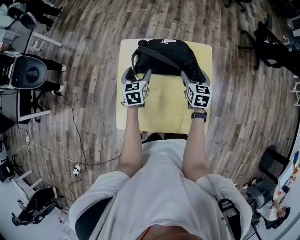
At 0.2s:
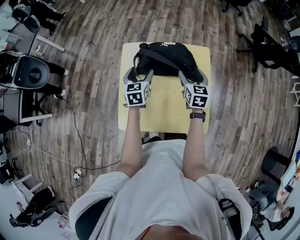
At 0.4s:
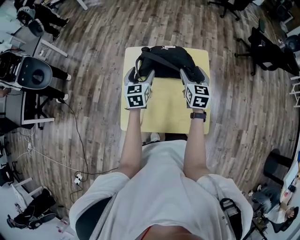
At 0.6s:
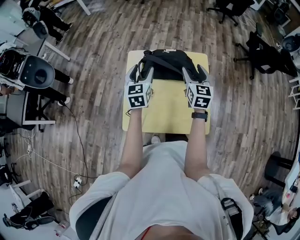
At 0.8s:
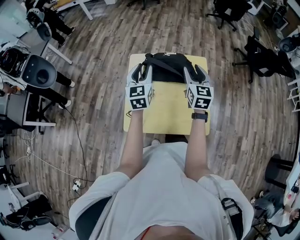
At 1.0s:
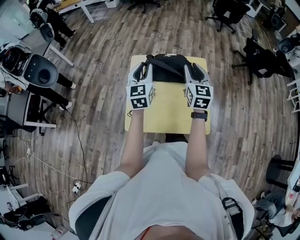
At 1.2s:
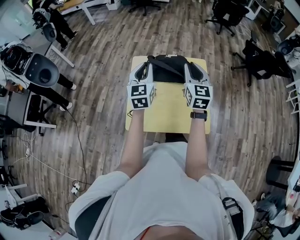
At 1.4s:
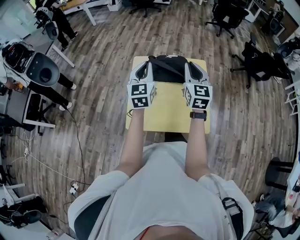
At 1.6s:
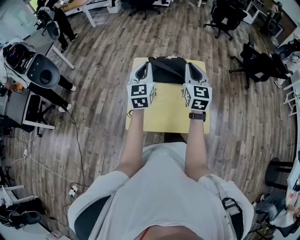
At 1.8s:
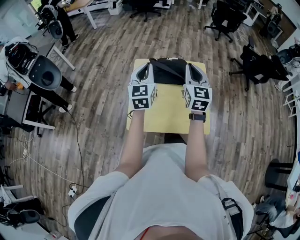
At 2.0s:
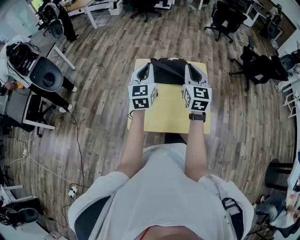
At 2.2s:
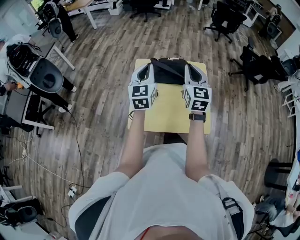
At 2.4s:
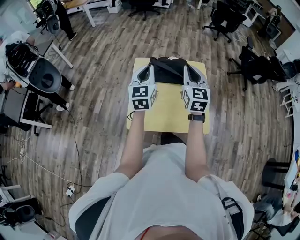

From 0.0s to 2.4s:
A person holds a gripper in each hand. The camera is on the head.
From 0.0s to 1.2s: The right gripper goes some 25 cm upward and backward, turns by about 30 degrees, and closes. The left gripper shifts some 20 cm upward, rotates approximately 30 degrees, and closes up.
From 1.2s to 2.4s: The right gripper shifts by roughly 5 cm.

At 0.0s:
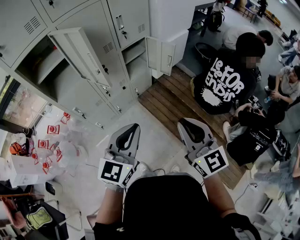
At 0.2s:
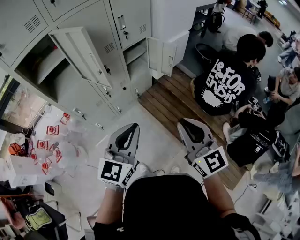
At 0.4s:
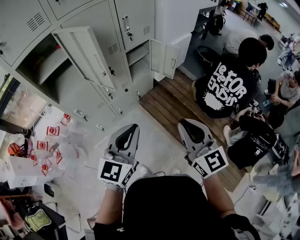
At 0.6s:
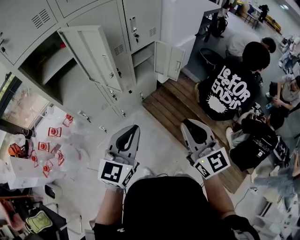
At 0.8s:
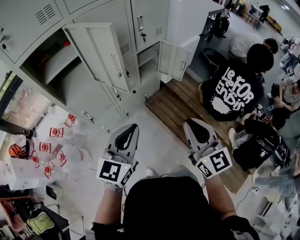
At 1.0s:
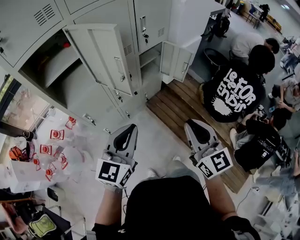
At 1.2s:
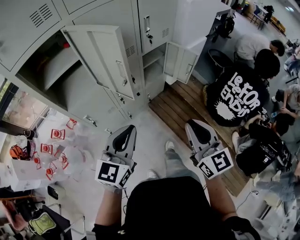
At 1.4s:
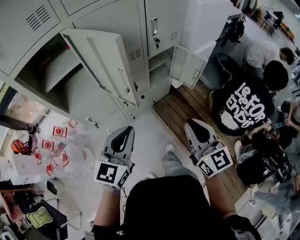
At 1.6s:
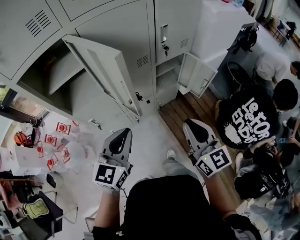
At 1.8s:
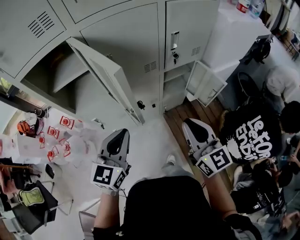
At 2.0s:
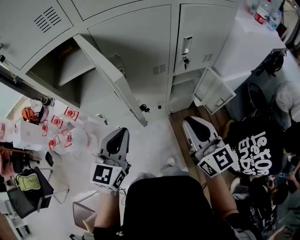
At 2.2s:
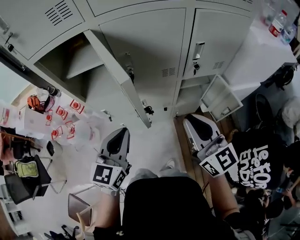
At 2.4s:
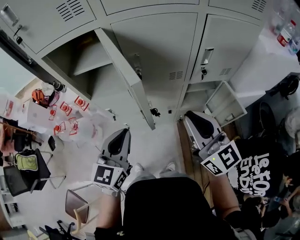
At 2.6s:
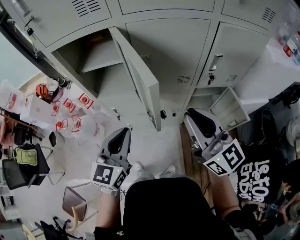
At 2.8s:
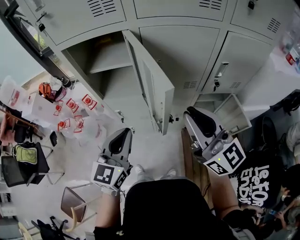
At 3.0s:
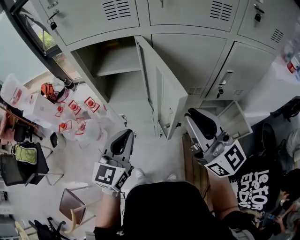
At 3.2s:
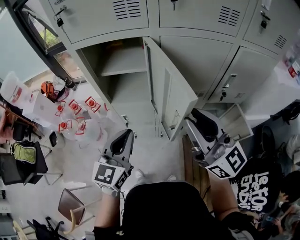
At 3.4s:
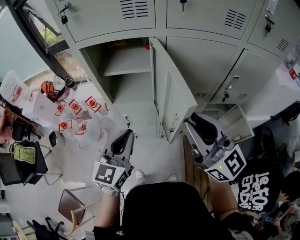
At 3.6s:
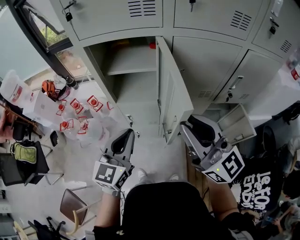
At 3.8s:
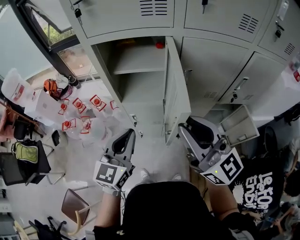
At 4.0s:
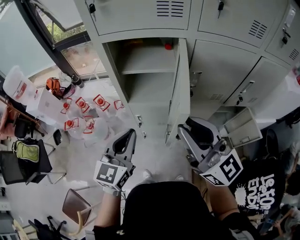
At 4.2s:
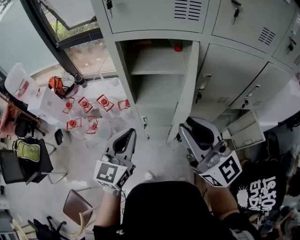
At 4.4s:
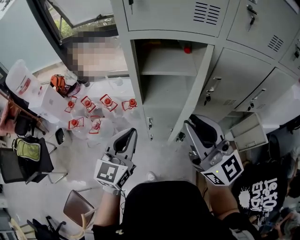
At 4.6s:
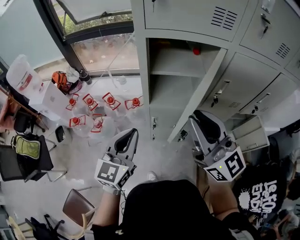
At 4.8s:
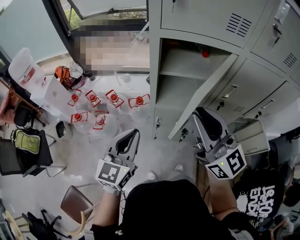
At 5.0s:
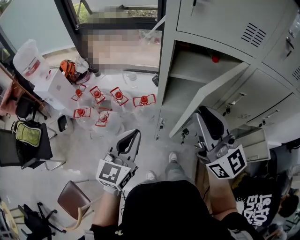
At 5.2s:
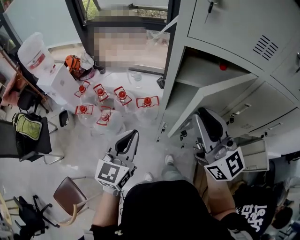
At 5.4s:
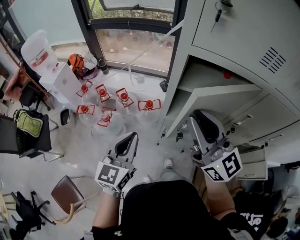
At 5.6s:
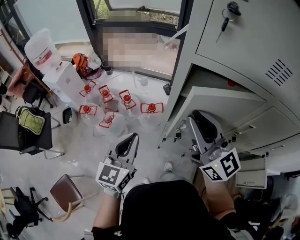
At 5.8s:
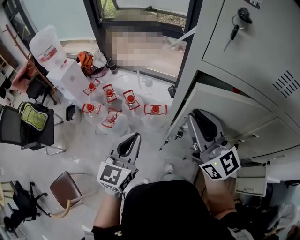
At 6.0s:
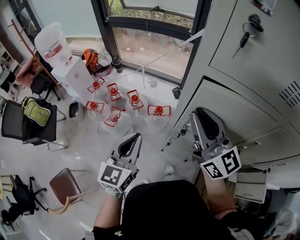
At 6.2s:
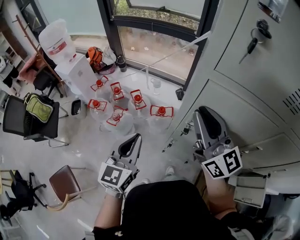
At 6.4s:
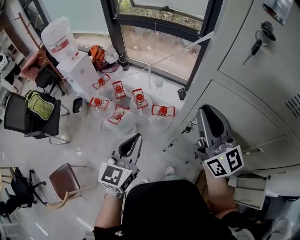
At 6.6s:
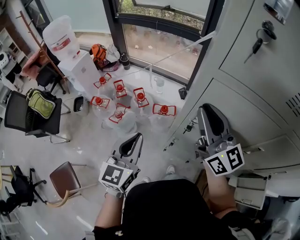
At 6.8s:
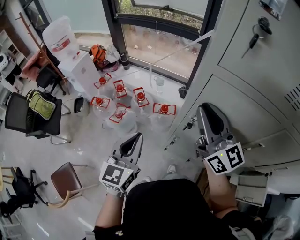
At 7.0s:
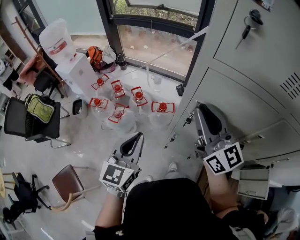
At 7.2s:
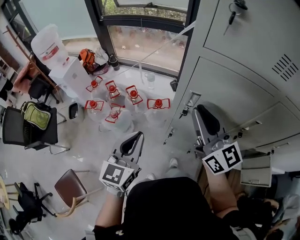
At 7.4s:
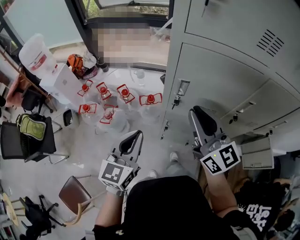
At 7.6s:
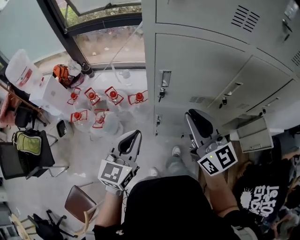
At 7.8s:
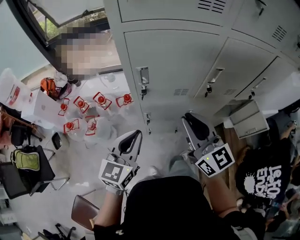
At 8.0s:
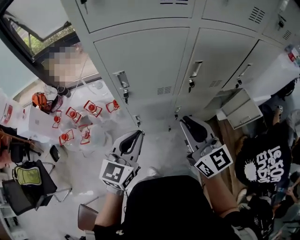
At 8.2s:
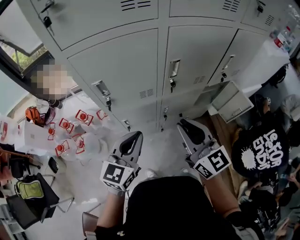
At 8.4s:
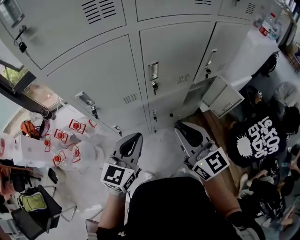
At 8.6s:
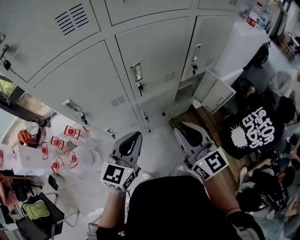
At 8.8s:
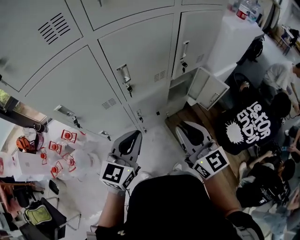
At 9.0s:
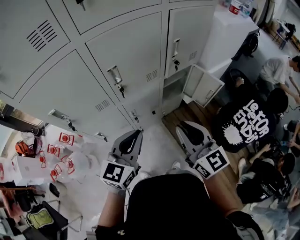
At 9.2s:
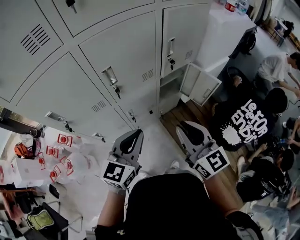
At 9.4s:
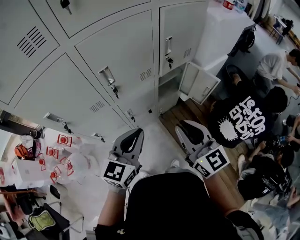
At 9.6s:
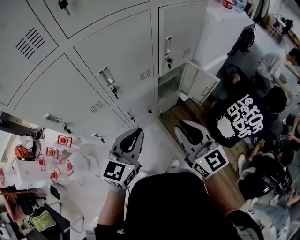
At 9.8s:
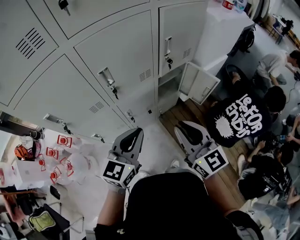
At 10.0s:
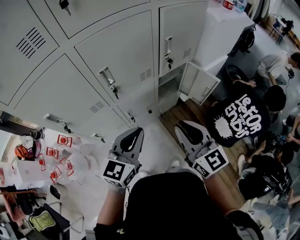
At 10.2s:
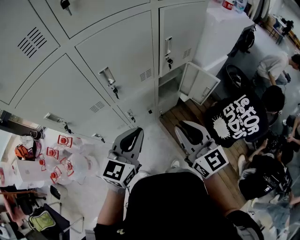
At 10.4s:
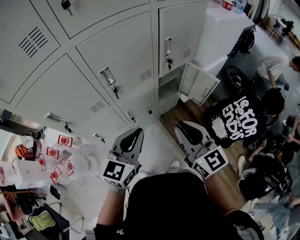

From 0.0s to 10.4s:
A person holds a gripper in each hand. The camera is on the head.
From 0.0s to 1.4s: The left gripper shifts roughly 20 cm to the left and forward, while the right gripper shifts about 20 cm forward and to the left.
From 1.4s to 3.0s: The left gripper shifts by some 15 cm, and changes its angle by roughly 40 degrees. The right gripper shifts by some 25 cm, and changes its angle by some 50 degrees.
From 3.0s to 4.4s: The grippers both shift to the left by some 20 cm.
From 4.4s to 6.0s: The right gripper goes roughly 20 cm forward; the left gripper heads forward and to the left, covering approximately 10 cm, and changes its angle by approximately 20 degrees.
From 6.0s to 7.4s: The right gripper heads backward, covering some 5 cm.
From 7.4s to 9.0s: The right gripper ends up approximately 40 cm from where it was, and swivels about 40 degrees. The left gripper shifts by some 40 cm, and changes its angle by about 50 degrees.
From 9.0s to 10.4s: There are only small adjustments of the grippers.

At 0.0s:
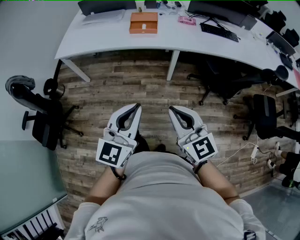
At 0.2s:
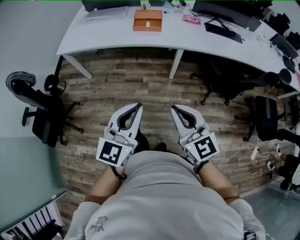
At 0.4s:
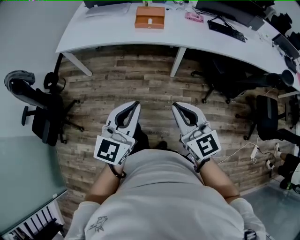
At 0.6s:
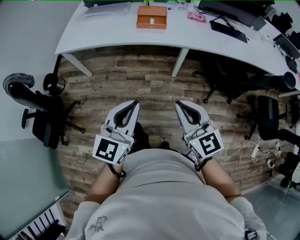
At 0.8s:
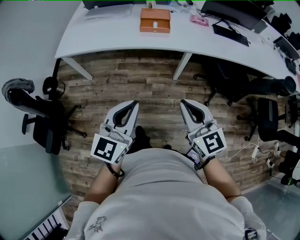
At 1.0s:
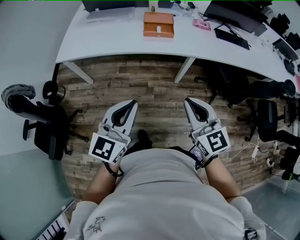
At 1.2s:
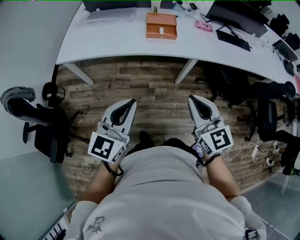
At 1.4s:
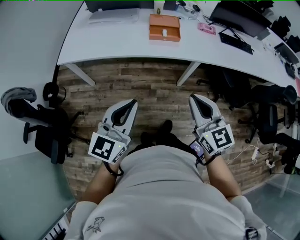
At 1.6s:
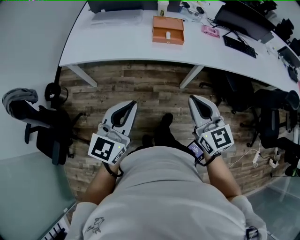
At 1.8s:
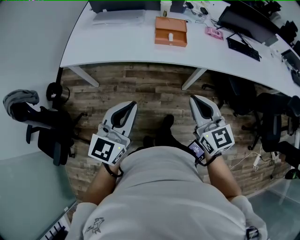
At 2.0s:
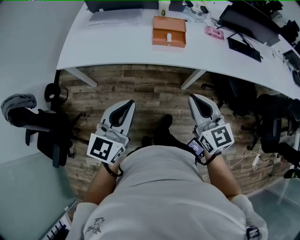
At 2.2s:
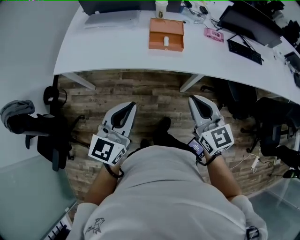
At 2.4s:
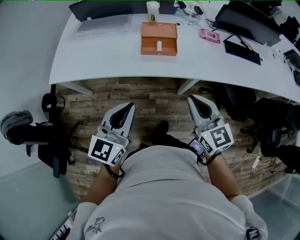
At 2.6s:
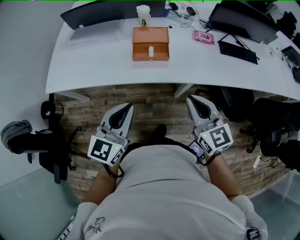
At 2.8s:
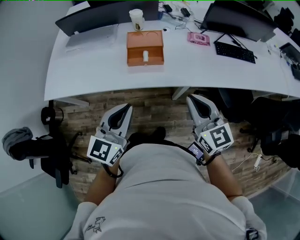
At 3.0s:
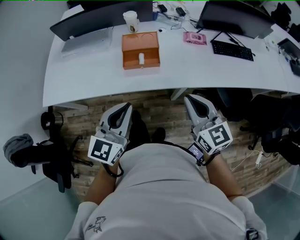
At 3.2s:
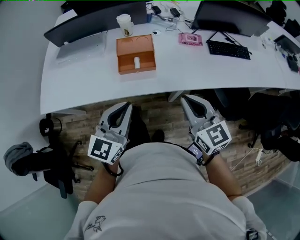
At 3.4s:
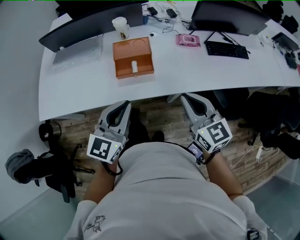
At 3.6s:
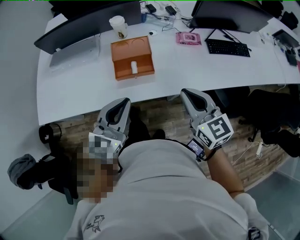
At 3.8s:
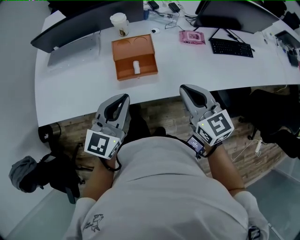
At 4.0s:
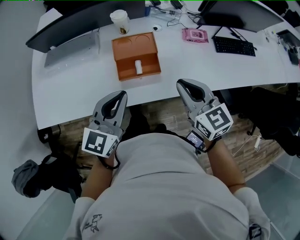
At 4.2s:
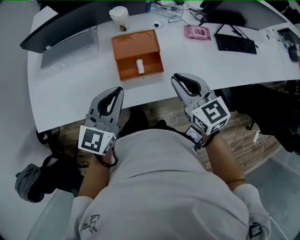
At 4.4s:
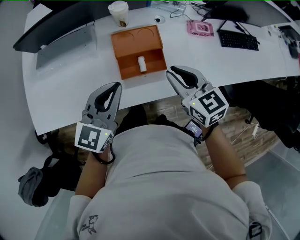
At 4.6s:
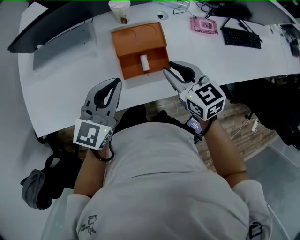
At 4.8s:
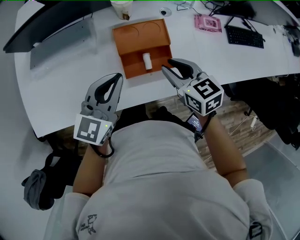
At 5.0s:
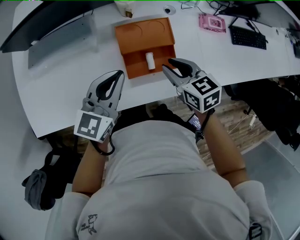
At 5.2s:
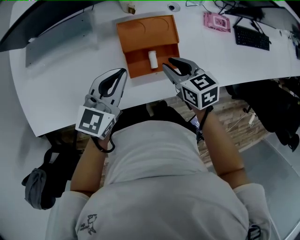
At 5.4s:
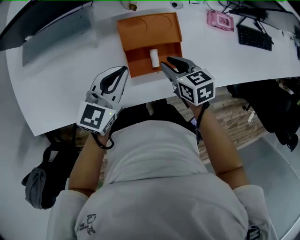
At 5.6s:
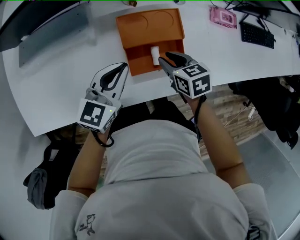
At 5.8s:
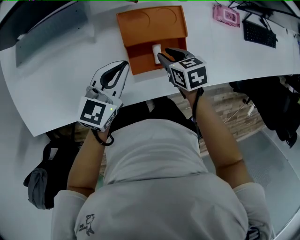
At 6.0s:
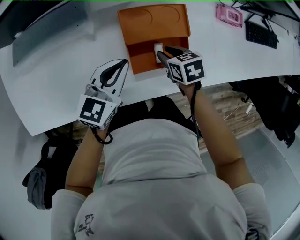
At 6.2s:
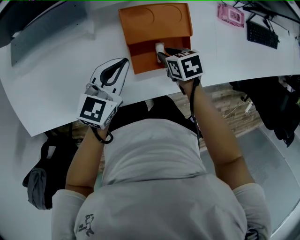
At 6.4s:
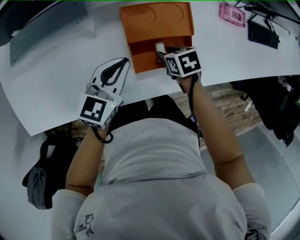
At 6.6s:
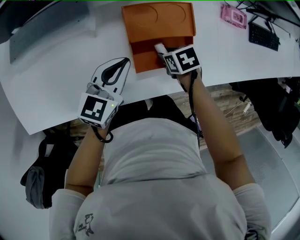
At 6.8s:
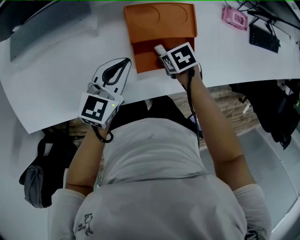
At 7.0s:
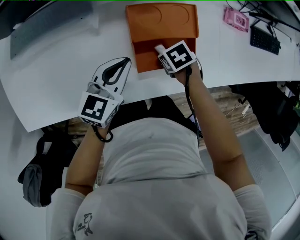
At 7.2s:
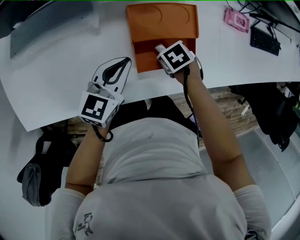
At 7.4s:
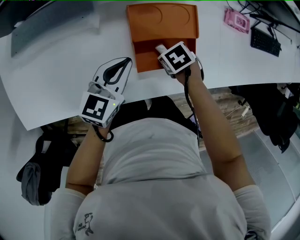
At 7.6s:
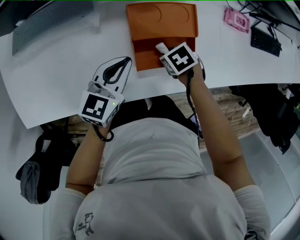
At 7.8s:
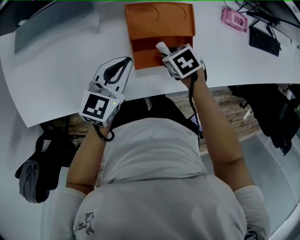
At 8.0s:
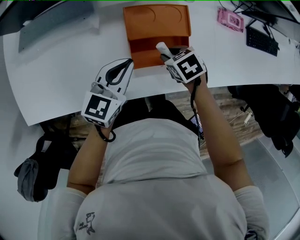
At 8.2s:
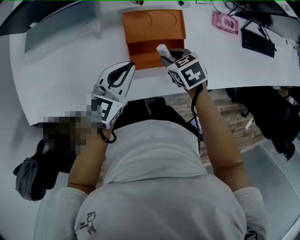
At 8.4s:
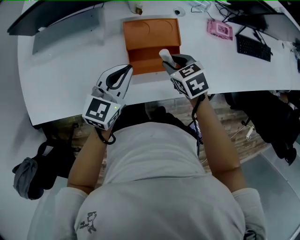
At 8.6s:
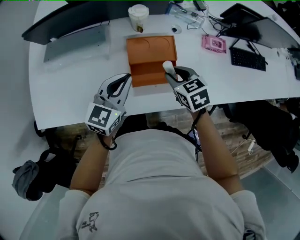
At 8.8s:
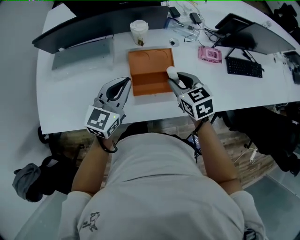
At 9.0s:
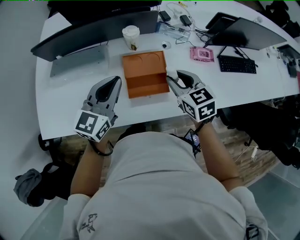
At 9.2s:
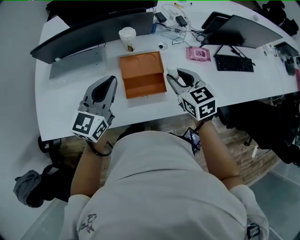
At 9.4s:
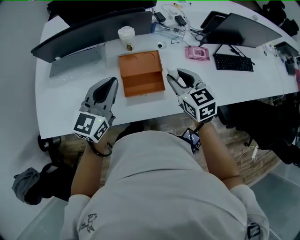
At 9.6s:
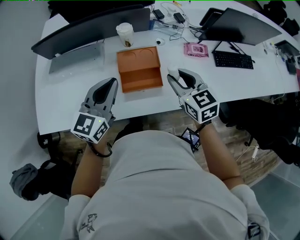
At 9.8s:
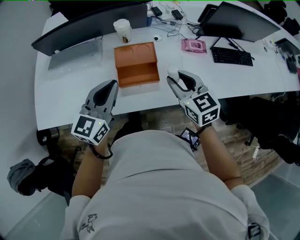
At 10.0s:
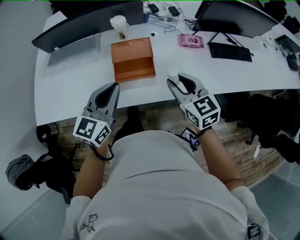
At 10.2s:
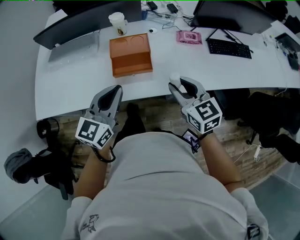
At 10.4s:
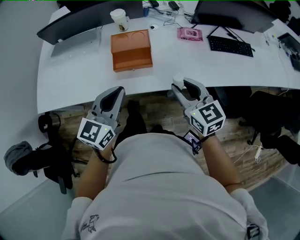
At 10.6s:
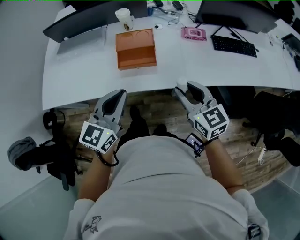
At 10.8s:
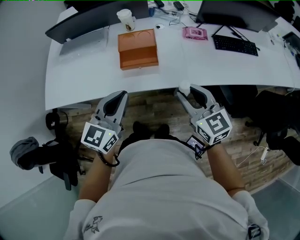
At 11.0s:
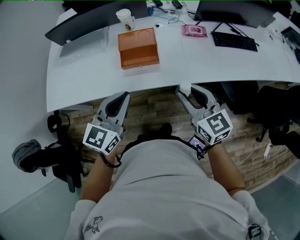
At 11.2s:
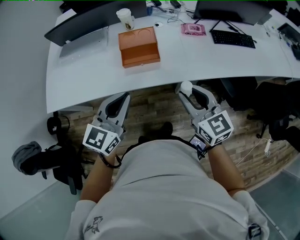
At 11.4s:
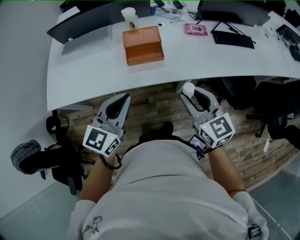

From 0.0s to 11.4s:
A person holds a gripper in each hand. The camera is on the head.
From 0.0s to 1.4s: The right gripper is displaced forward and to the left by some 25 cm; the left gripper shifts some 30 cm to the left and forward.
From 1.4s to 2.8s: Both grippers move forward and to the right, some 30 cm.
From 2.8s to 4.2s: Both grippers move forward, some 25 cm.
From 4.2s to 5.6s: The grippers both shift downward and forward by some 25 cm. The right gripper swivels about 40 degrees.
From 5.6s to 7.2s: The right gripper heads downward, covering about 10 cm, and changes its angle by about 40 degrees. Meanwhile the left gripper goes approximately 5 cm downward.
From 7.2s to 8.6s: Both grippers travel together upward, some 20 cm. The right gripper swivels roughly 40 degrees.
From 8.6s to 10.0s: Both grippers travel together backward, upward and to the right, roughly 20 cm. The right gripper turns by approximately 30 degrees.
From 10.0s to 11.4s: Both grippers move backward, approximately 20 cm.
